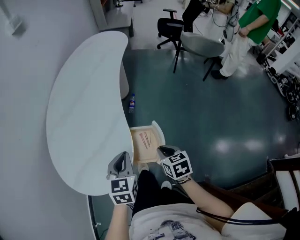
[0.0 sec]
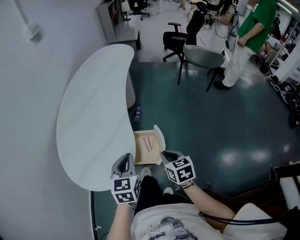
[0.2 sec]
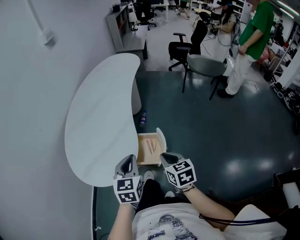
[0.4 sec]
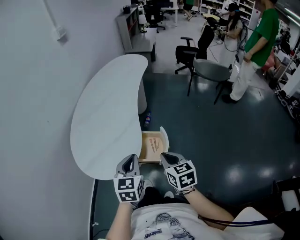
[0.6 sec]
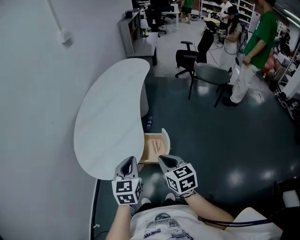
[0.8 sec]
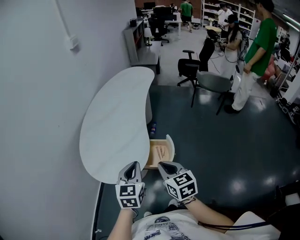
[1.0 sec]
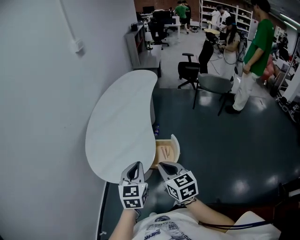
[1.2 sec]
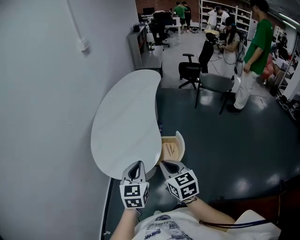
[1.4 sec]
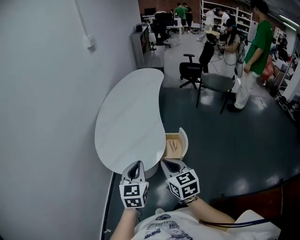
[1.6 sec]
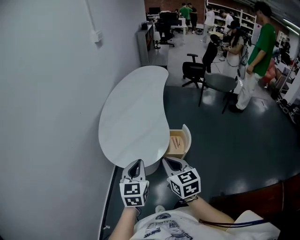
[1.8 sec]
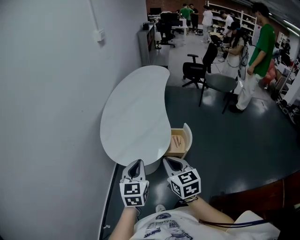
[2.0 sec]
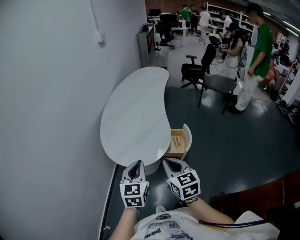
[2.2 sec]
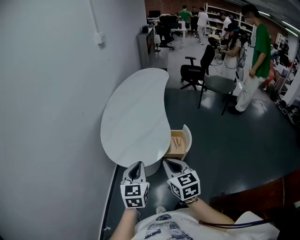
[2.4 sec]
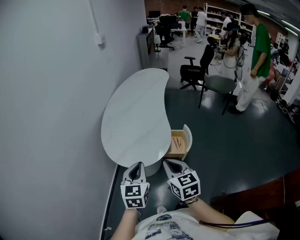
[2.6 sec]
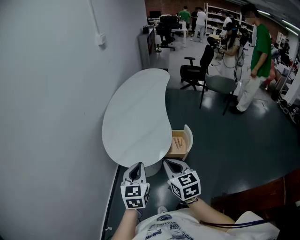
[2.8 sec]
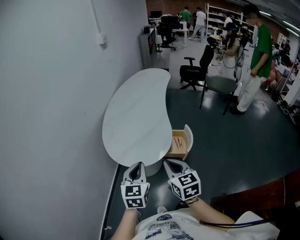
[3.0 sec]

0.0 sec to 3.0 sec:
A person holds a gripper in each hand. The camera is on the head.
0.0 sec to 1.6 sec: The right gripper moves upward, to the left and backward, some 35 cm, and rotates about 30 degrees. The left gripper heads backward, upward and to the left, covering roughly 30 cm.
1.6 sec to 3.0 sec: The left gripper goes approximately 10 cm to the left and backward. The right gripper changes place by approximately 5 cm.

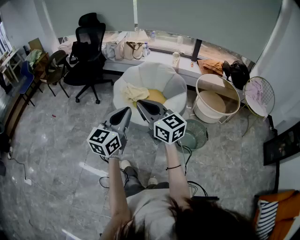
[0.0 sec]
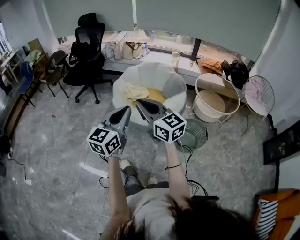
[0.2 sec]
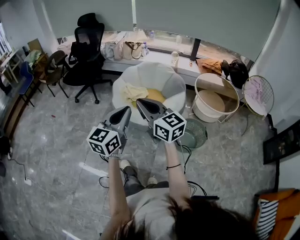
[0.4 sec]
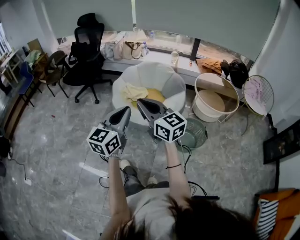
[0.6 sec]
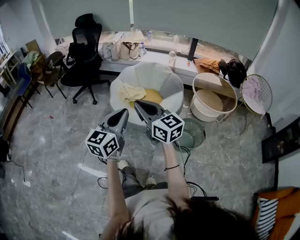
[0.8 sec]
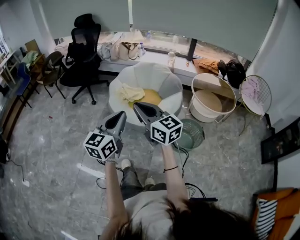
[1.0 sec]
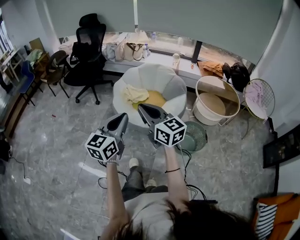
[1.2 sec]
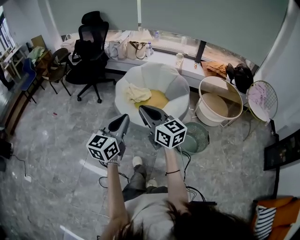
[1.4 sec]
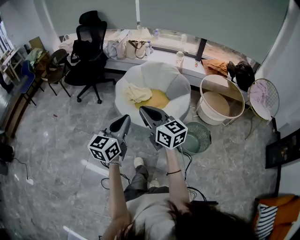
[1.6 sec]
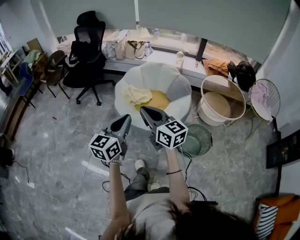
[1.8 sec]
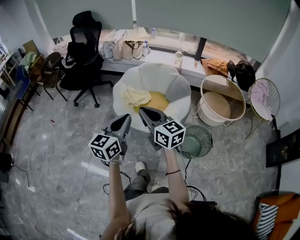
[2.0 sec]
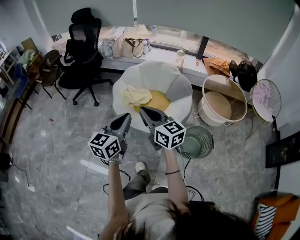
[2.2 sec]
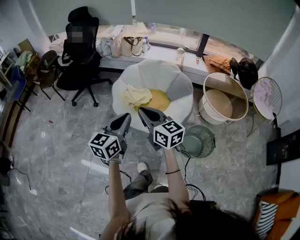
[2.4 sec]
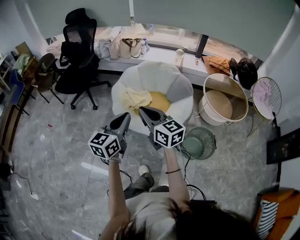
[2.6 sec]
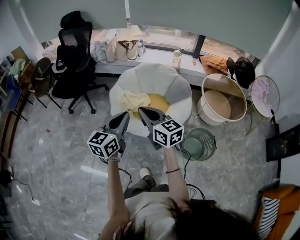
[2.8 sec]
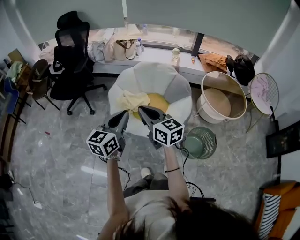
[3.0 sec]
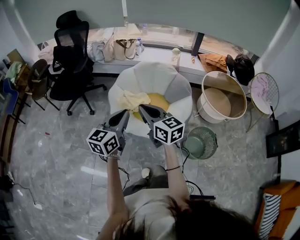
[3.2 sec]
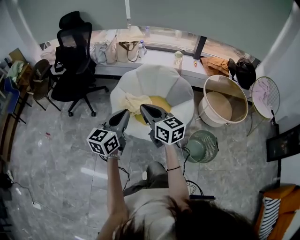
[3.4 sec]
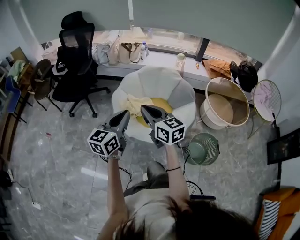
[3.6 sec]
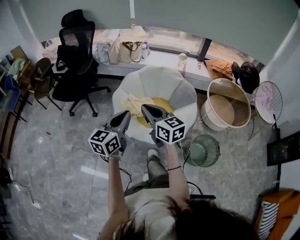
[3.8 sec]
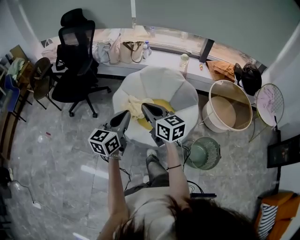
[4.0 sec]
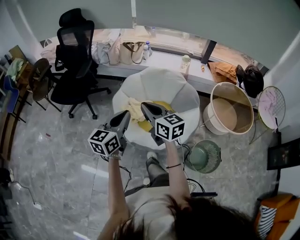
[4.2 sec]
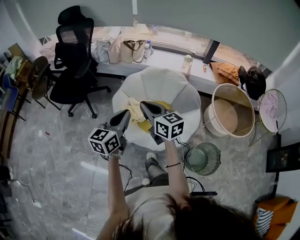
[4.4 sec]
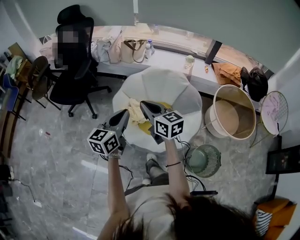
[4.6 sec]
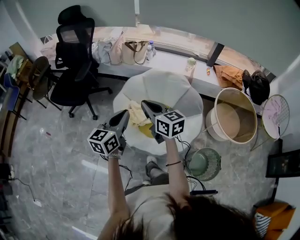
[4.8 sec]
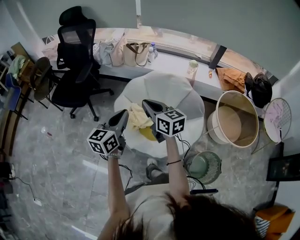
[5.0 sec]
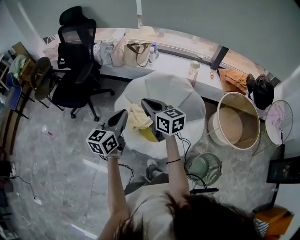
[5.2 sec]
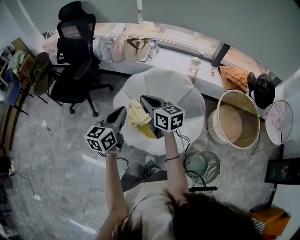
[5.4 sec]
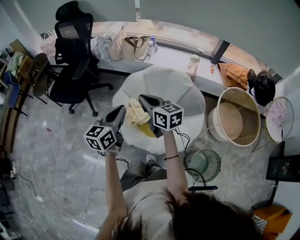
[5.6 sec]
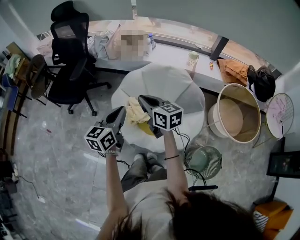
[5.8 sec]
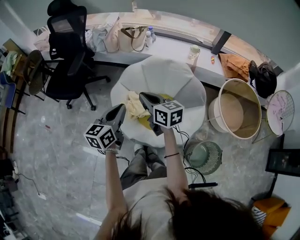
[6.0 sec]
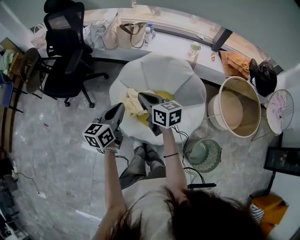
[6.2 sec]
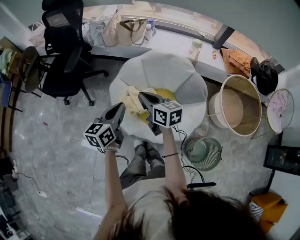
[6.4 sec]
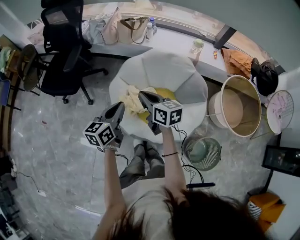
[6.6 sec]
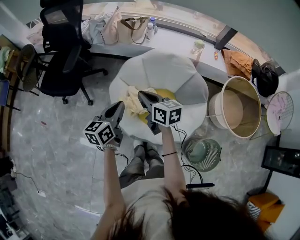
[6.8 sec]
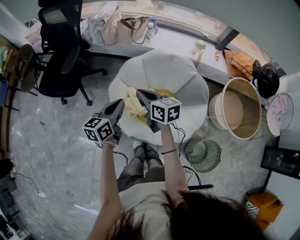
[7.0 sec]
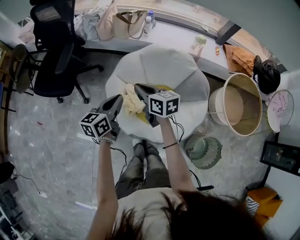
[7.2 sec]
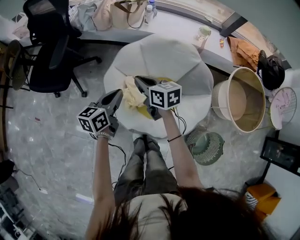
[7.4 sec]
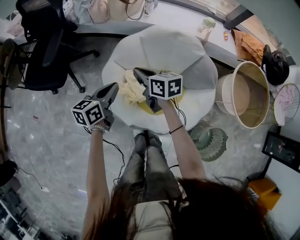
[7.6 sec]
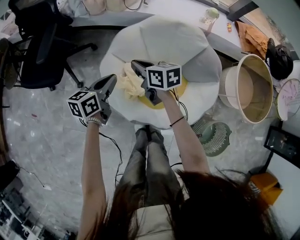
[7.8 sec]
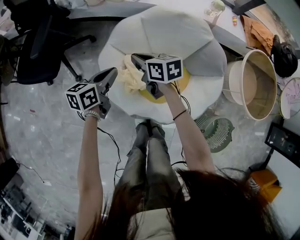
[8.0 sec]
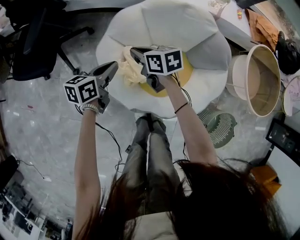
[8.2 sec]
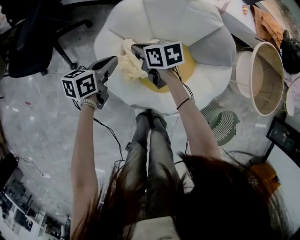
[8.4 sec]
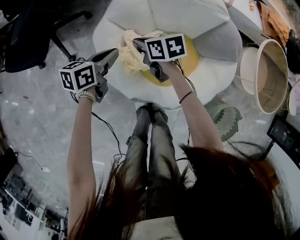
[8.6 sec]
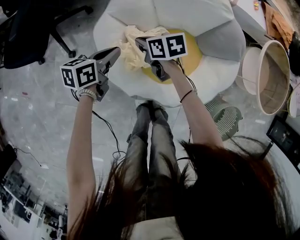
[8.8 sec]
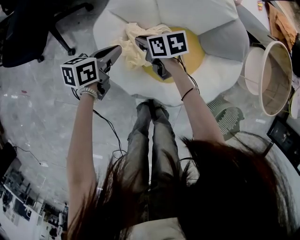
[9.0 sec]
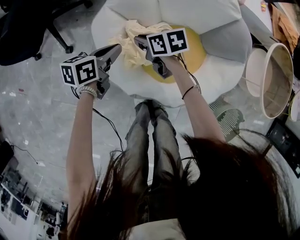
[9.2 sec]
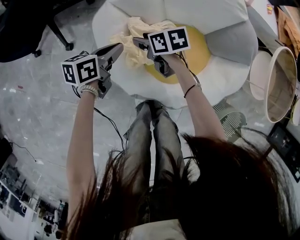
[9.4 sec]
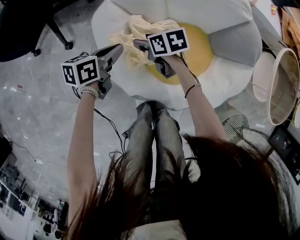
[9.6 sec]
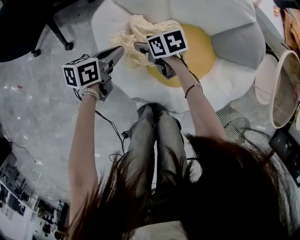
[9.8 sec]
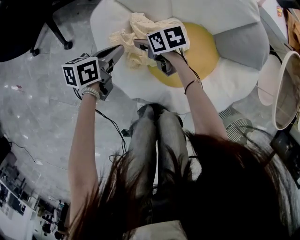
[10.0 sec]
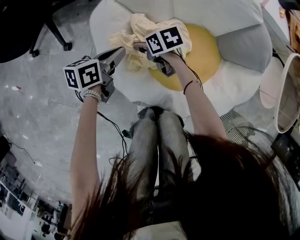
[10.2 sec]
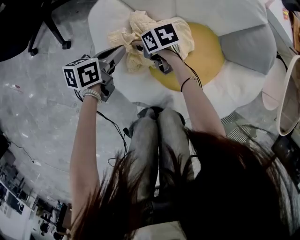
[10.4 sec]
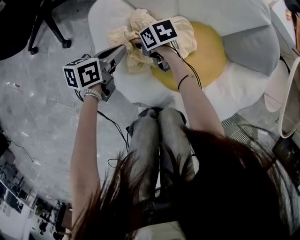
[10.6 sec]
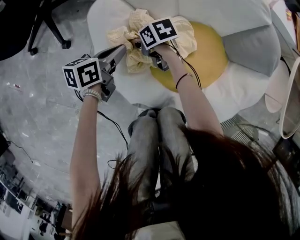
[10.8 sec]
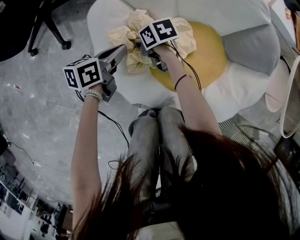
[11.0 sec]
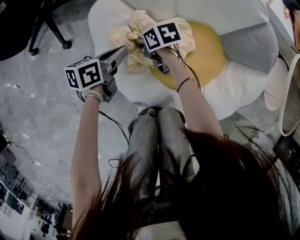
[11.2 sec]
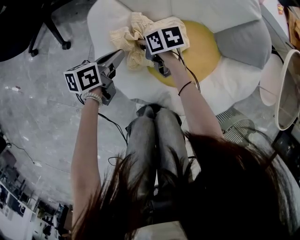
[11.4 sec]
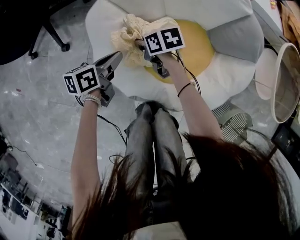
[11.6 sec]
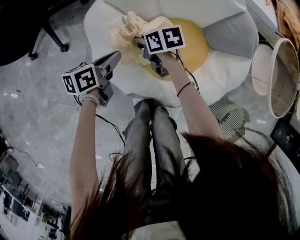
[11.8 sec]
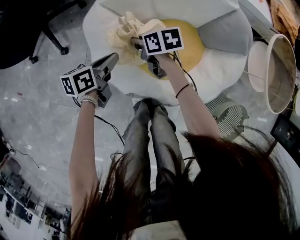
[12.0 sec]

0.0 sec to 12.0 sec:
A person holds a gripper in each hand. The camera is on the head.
0.0 sec to 1.6 sec: The right gripper shifts by some 5 cm. Meanwhile the left gripper changes place by approximately 5 cm.
1.6 sec to 3.0 sec: The grippers both shift forward by roughly 20 cm.
3.0 sec to 4.4 sec: Both grippers travel together forward, approximately 20 cm.
4.4 sec to 6.0 sec: The right gripper moves forward and downward, roughly 15 cm. Meanwhile the left gripper travels forward by approximately 10 cm.
6.0 sec to 7.6 sec: The grippers both shift downward and forward by roughly 25 cm.
7.6 sec to 9.0 sec: Both grippers travel together downward, some 20 cm. The right gripper changes its angle by roughly 20 degrees.
9.0 sec to 10.4 sec: Both grippers move downward, about 15 cm. The right gripper opens.
10.4 sec to 12.0 sec: The right gripper moves upward, roughly 15 cm, and closes. The left gripper shifts about 10 cm upward.

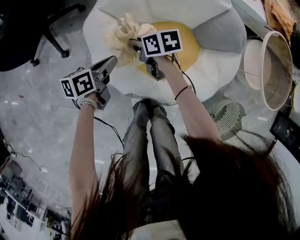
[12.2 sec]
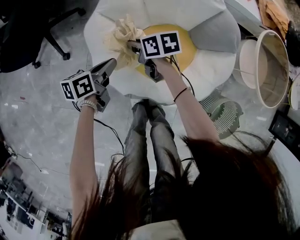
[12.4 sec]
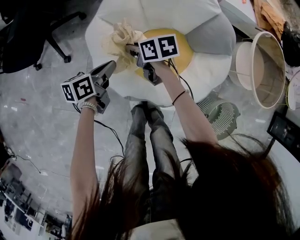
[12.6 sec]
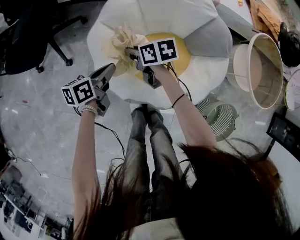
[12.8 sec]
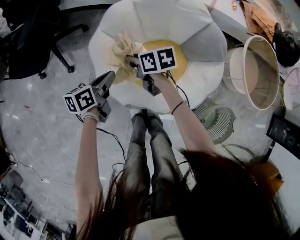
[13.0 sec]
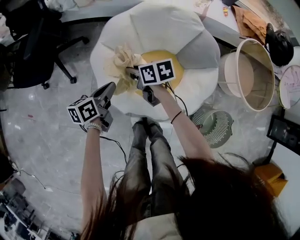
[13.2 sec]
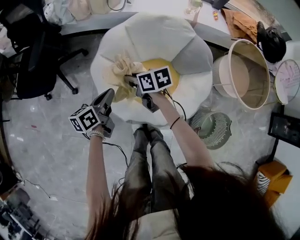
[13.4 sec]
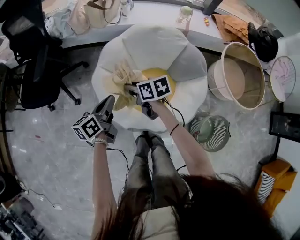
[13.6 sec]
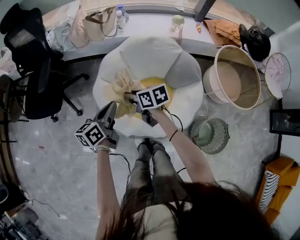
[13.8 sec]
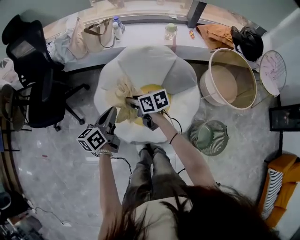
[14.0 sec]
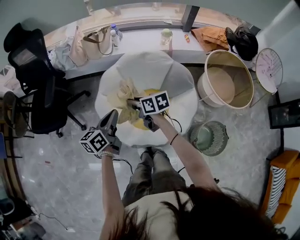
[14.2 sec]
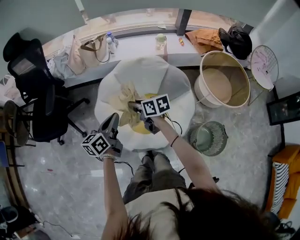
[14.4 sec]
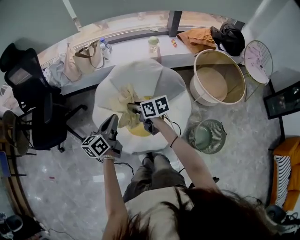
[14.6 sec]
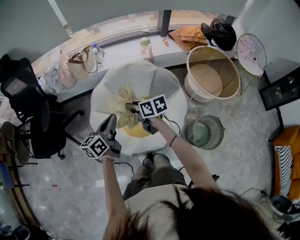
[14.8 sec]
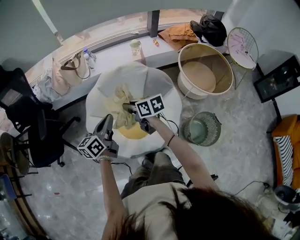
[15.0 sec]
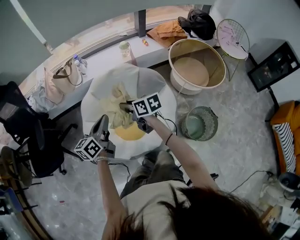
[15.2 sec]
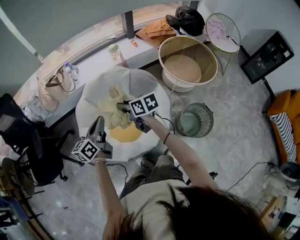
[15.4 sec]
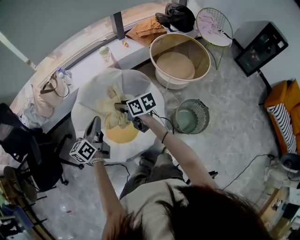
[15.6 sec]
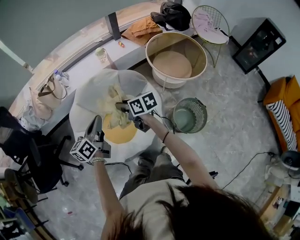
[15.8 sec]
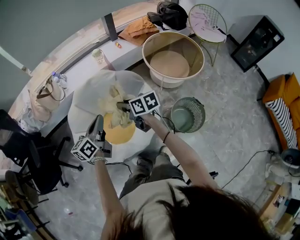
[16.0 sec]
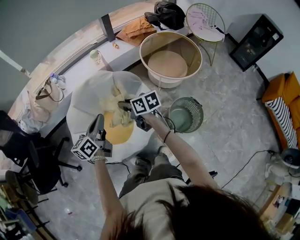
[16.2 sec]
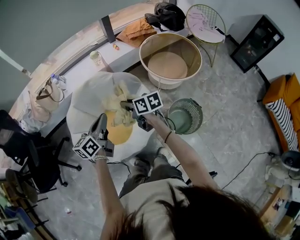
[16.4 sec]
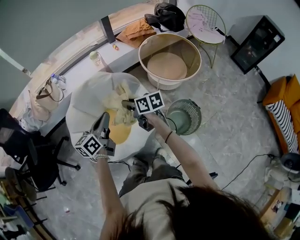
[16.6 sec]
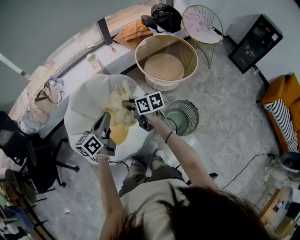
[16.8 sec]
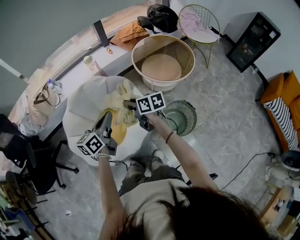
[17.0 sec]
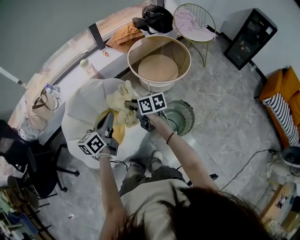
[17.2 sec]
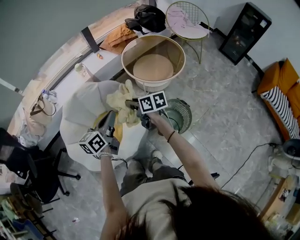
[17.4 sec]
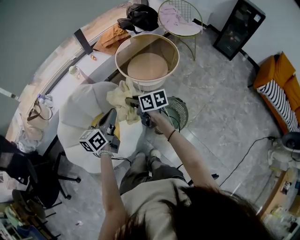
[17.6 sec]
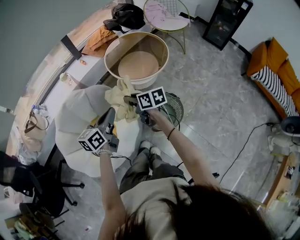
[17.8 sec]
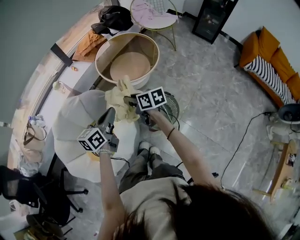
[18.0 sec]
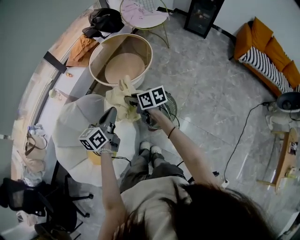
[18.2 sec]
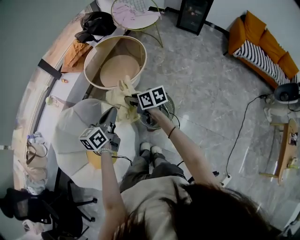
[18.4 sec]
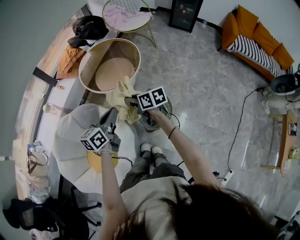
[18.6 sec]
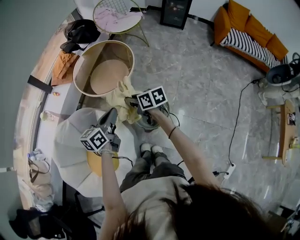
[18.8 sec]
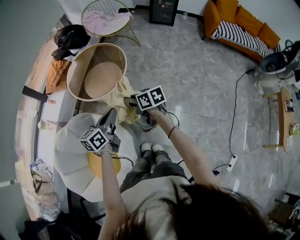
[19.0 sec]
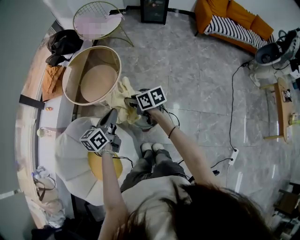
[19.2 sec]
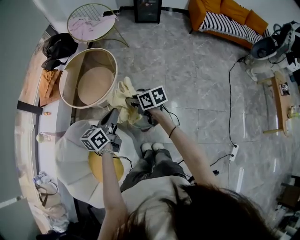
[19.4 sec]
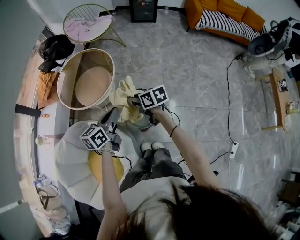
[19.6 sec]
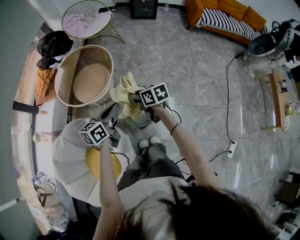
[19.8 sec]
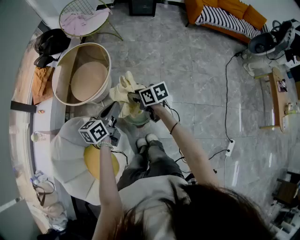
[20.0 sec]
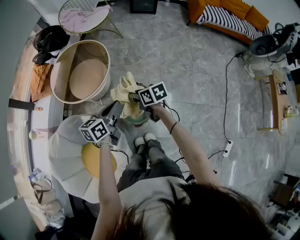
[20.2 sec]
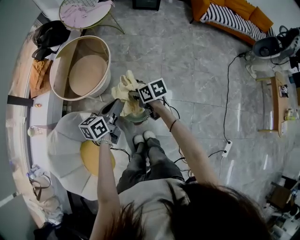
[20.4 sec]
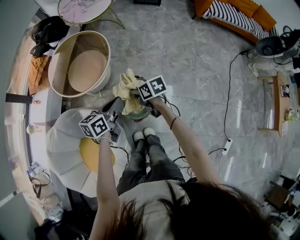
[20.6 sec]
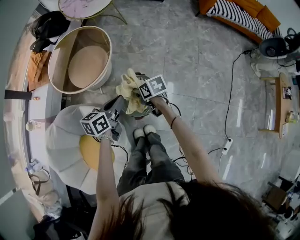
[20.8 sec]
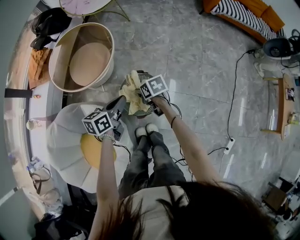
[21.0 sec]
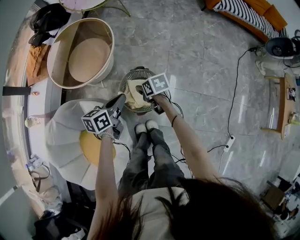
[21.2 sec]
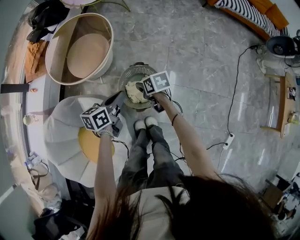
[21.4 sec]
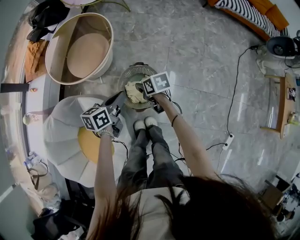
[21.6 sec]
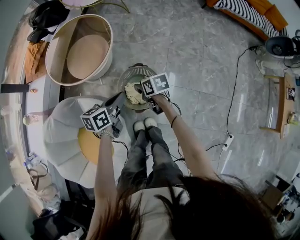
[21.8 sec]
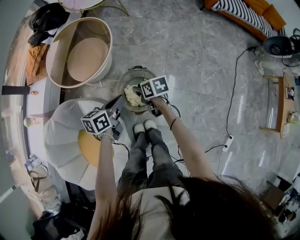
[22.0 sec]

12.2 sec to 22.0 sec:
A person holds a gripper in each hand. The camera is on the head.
12.2 sec to 13.6 sec: The two grippers go roughly 25 cm upward.
13.6 sec to 15.0 sec: The grippers both shift upward and to the right by about 15 cm. The left gripper turns by about 20 degrees. The right gripper turns by some 20 degrees.
15.0 sec to 16.4 sec: The grippers both shift to the right by approximately 20 cm.
16.4 sec to 17.8 sec: The grippers both shift to the right by about 20 cm. The left gripper changes its angle by some 20 degrees.
17.8 sec to 19.2 sec: The right gripper shifts by roughly 15 cm, and swivels some 30 degrees; the left gripper moves about 15 cm, and turns by approximately 30 degrees.
19.2 sec to 20.6 sec: The left gripper travels to the right and downward by roughly 10 cm. The right gripper goes approximately 10 cm downward and to the right.
20.6 sec to 22.0 sec: The two grippers go about 5 cm downward.
